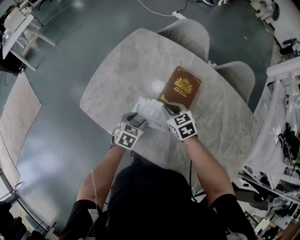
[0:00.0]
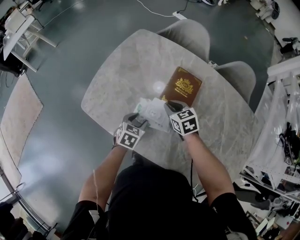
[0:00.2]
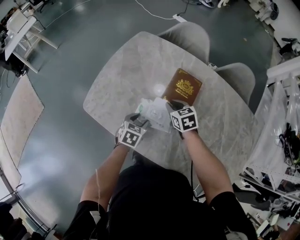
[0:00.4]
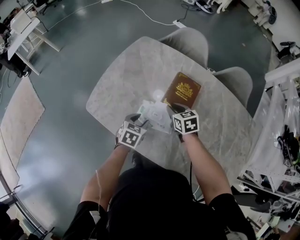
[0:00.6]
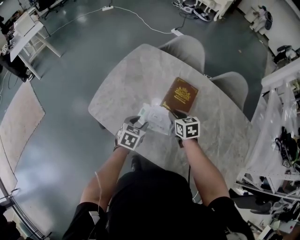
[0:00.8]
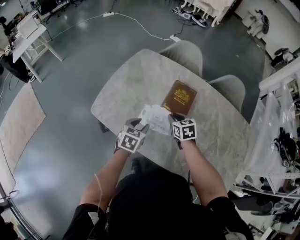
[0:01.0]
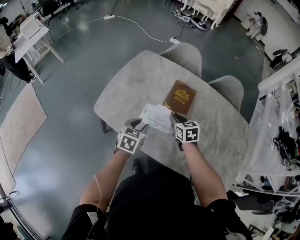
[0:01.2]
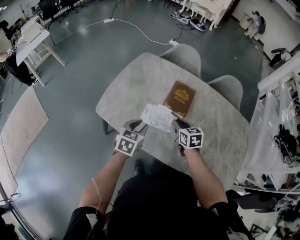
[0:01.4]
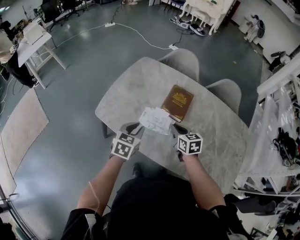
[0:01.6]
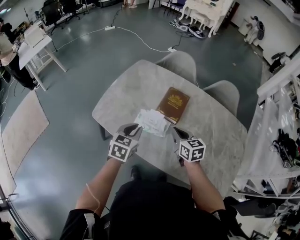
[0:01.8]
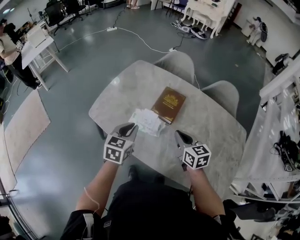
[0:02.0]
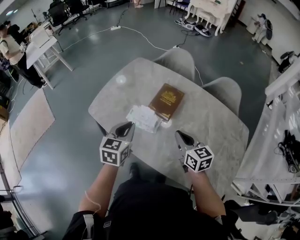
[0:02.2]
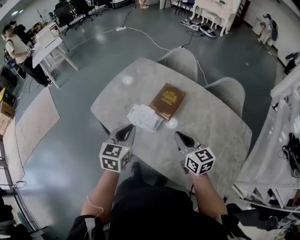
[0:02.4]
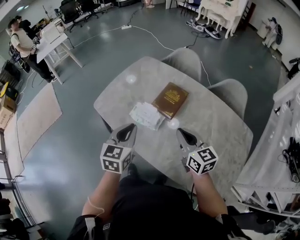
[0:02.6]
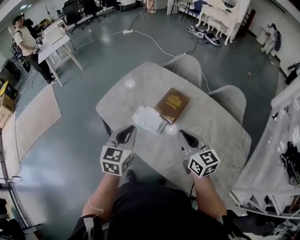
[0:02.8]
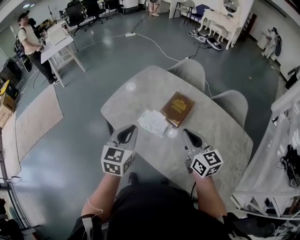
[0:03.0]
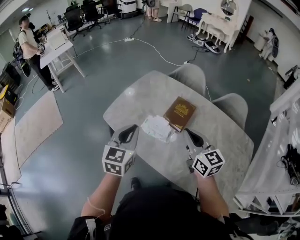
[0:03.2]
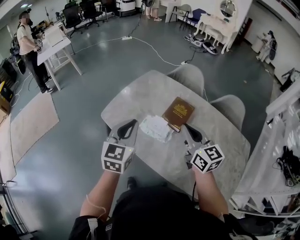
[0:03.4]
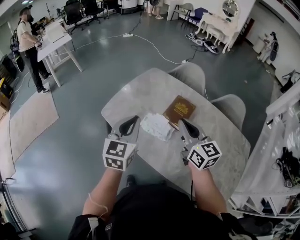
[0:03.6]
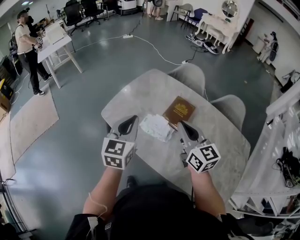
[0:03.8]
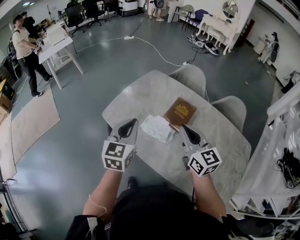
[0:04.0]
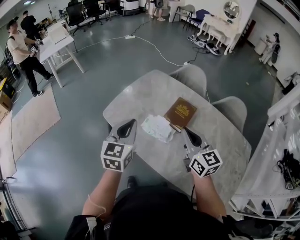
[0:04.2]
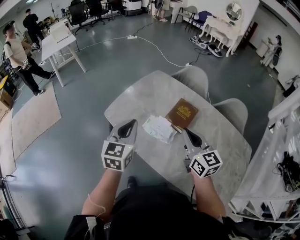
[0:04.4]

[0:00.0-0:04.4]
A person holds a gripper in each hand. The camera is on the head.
0.0 to 1.4 s: The right gripper shifts approximately 5 cm to the right, goes forward and returns, approximately 10 cm each way, and rotates roughly 20 degrees. The left gripper goes some 10 cm upward, and closes.
1.4 to 3.0 s: Both grippers travel together upward and backward, about 30 cm. The left gripper turns by approximately 30 degrees, and closes up. Meanwhile the right gripper swivels some 30 degrees.
3.0 to 4.4 s: The left gripper ends up approximately 5 cm from where it was.

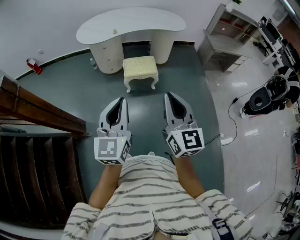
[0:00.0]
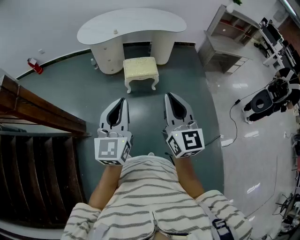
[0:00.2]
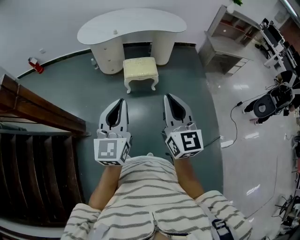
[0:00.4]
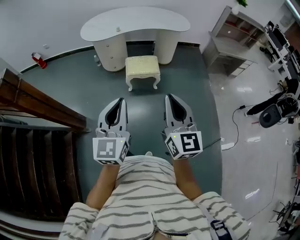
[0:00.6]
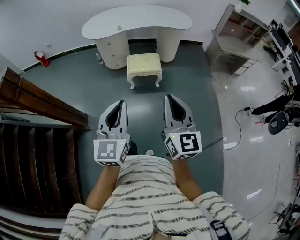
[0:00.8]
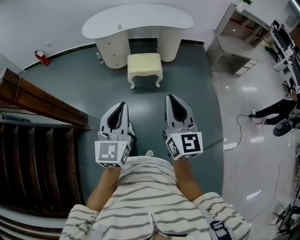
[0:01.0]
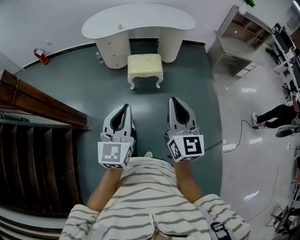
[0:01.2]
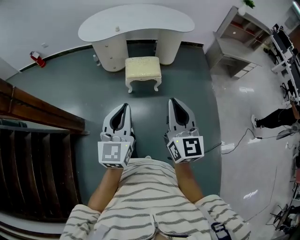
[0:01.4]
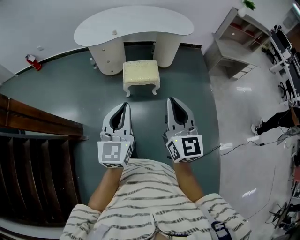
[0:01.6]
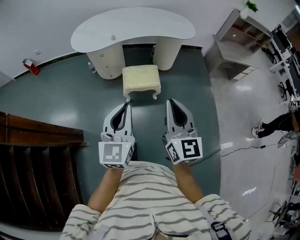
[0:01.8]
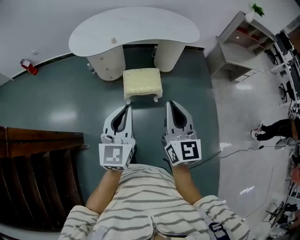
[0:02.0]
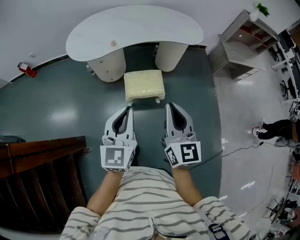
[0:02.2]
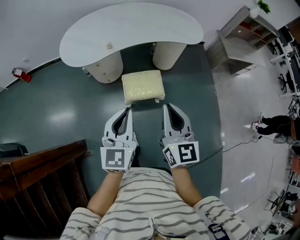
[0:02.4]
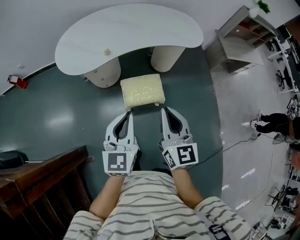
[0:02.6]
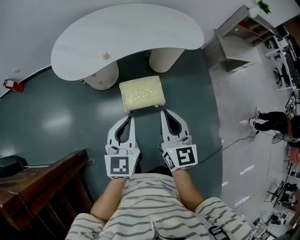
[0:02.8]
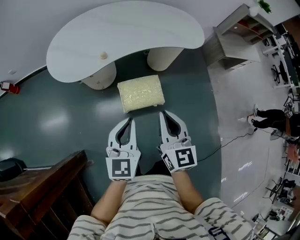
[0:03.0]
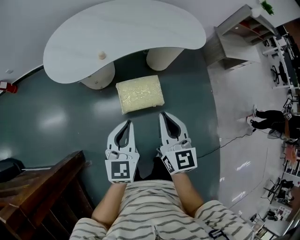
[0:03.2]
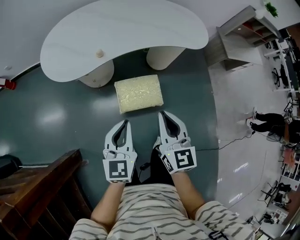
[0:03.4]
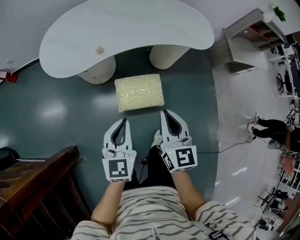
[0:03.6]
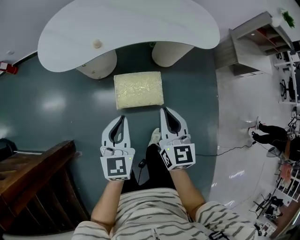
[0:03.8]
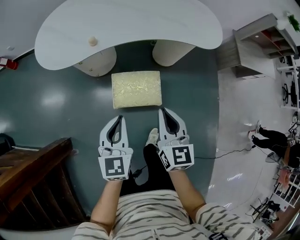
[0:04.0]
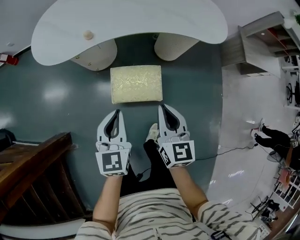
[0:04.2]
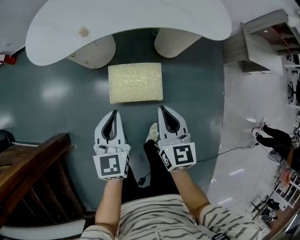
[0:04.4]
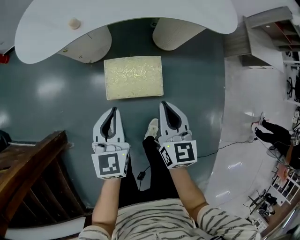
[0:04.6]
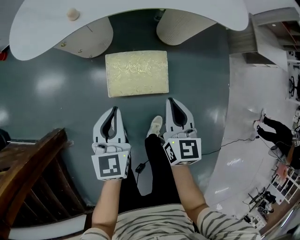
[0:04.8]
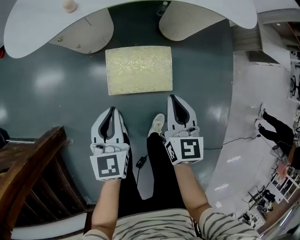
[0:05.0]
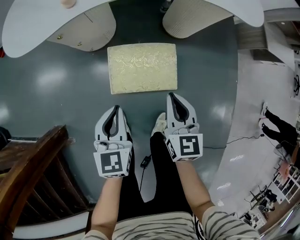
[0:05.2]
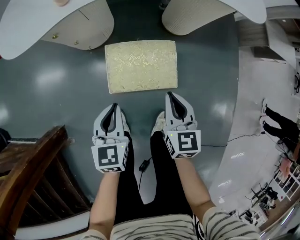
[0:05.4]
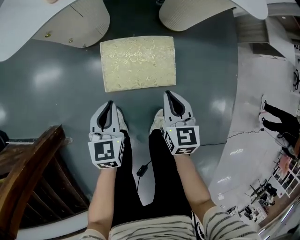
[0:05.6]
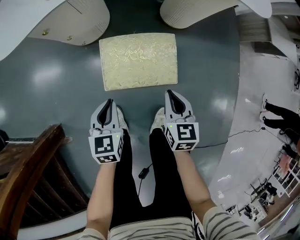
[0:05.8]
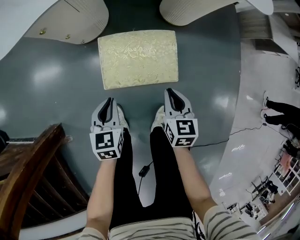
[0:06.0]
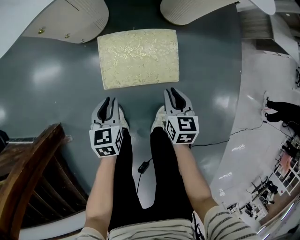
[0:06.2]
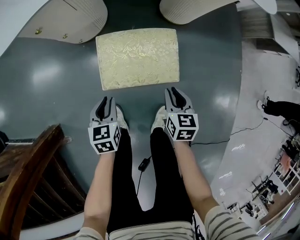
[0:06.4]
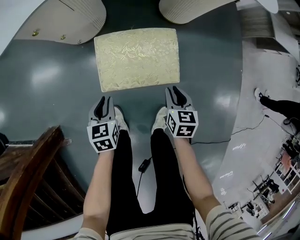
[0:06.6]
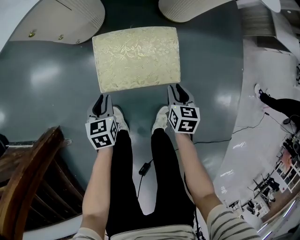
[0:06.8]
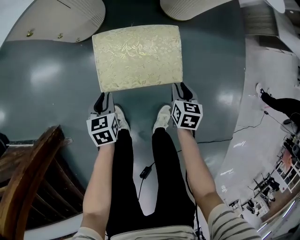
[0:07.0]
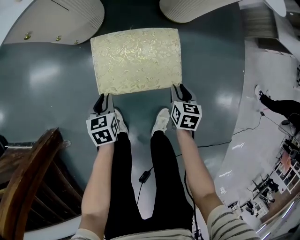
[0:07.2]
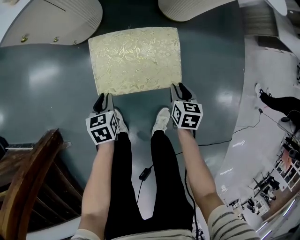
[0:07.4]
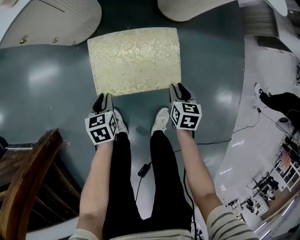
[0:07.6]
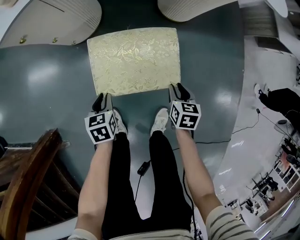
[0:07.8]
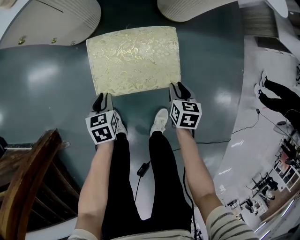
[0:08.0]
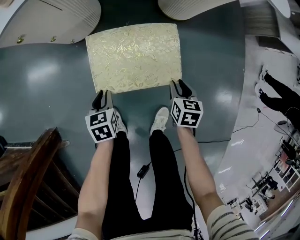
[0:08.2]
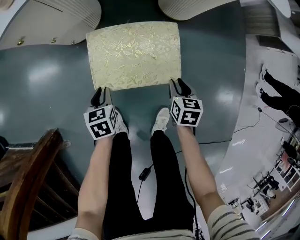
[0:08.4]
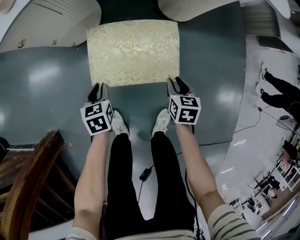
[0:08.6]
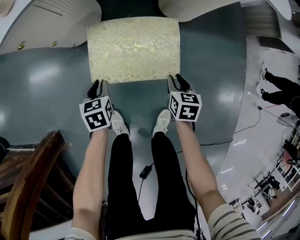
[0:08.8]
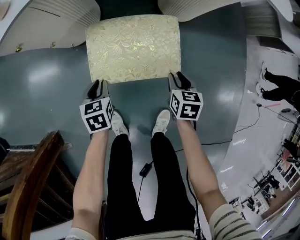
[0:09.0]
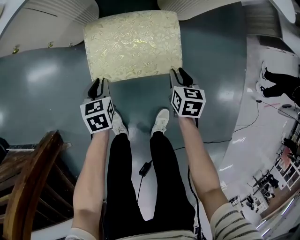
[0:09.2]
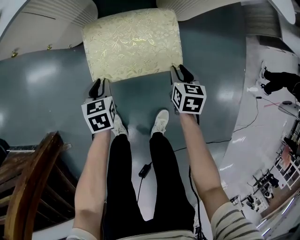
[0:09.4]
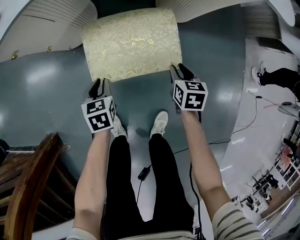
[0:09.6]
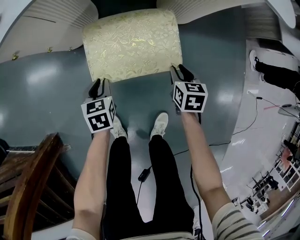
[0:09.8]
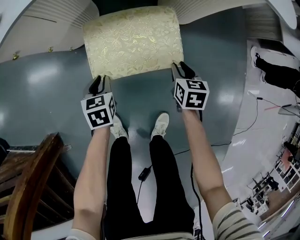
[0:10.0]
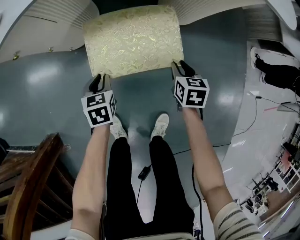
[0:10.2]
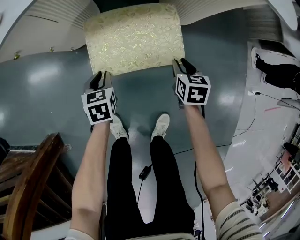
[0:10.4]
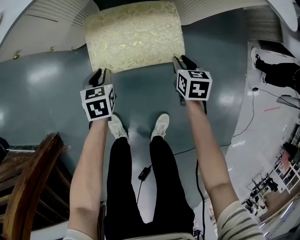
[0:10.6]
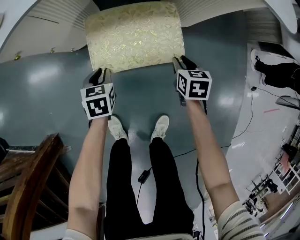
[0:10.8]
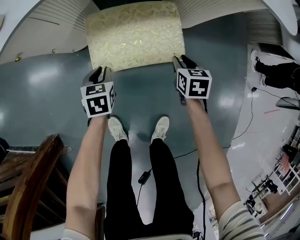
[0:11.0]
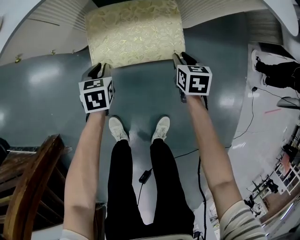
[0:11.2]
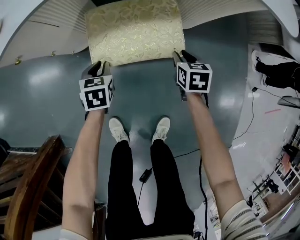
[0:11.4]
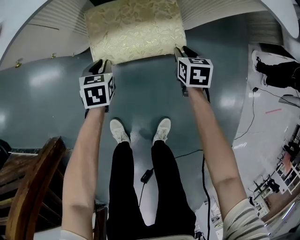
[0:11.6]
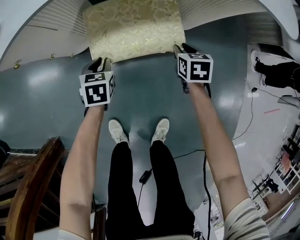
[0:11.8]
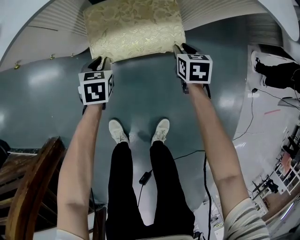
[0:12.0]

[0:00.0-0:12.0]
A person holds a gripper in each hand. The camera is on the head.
0.0 to 1.6 s: The right gripper travels forward by about 10 cm, while the left gripper is displaced forward and downward by some 10 cm.
1.6 to 3.0 s: The grippers both shift forward by some 35 cm.
3.0 to 4.4 s: The left gripper shifts approximately 20 cm downward, while the right gripper is displaced downward and to the right by about 25 cm.
4.4 to 6.0 s: The grippers both shift downward by some 30 cm. The left gripper turns by about 20 degrees.
6.0 to 7.6 s: The left gripper heads downward, covering roughly 15 cm. The right gripper heads downward and to the right, covering about 15 cm, and opens up.
7.6 to 9.0 s: Both grippers travel together forward, about 5 cm.
9.0 to 10.4 s: Both grippers move forward, approximately 10 cm.
10.4 to 12.0 s: Both grippers move forward, approximately 10 cm.

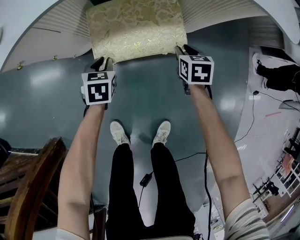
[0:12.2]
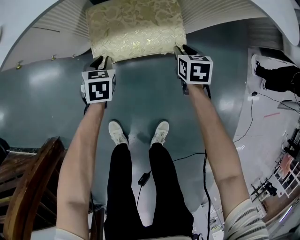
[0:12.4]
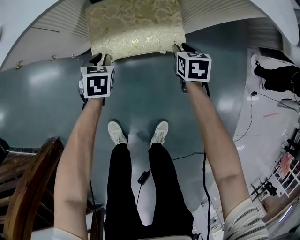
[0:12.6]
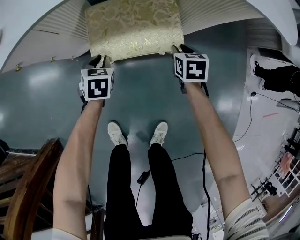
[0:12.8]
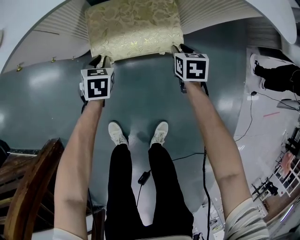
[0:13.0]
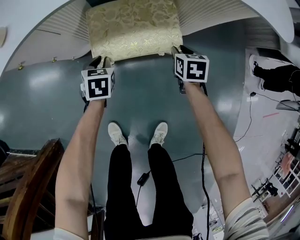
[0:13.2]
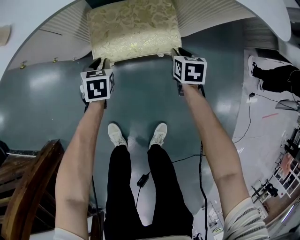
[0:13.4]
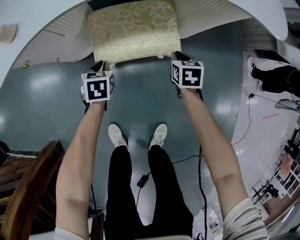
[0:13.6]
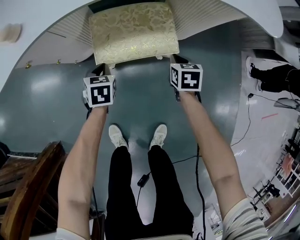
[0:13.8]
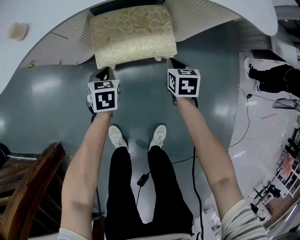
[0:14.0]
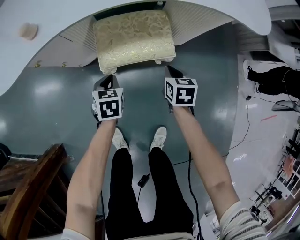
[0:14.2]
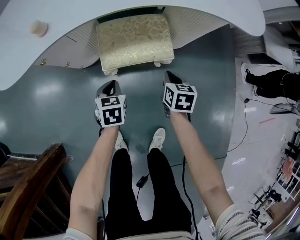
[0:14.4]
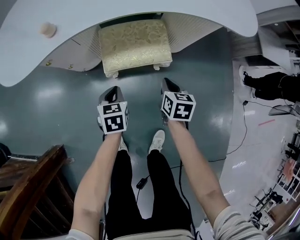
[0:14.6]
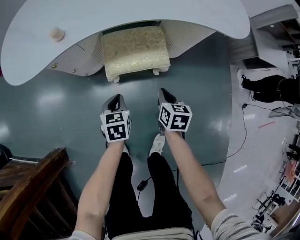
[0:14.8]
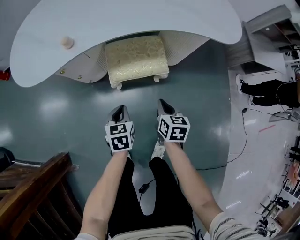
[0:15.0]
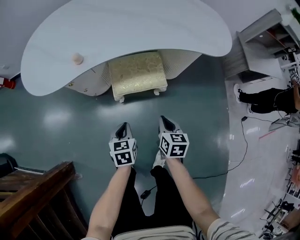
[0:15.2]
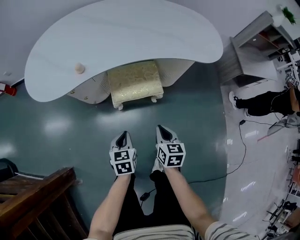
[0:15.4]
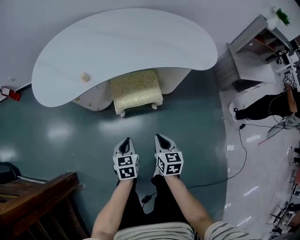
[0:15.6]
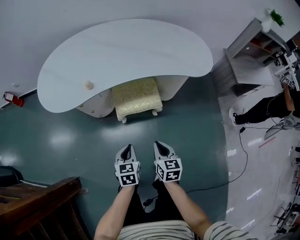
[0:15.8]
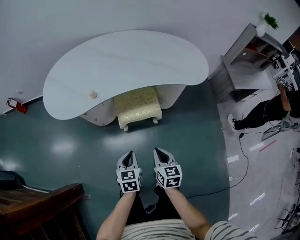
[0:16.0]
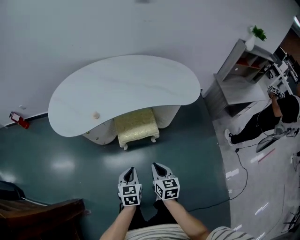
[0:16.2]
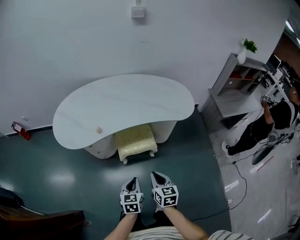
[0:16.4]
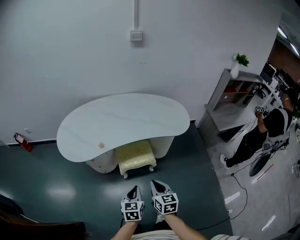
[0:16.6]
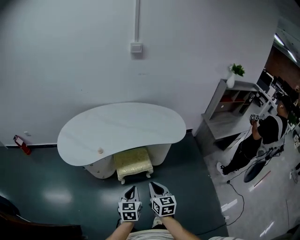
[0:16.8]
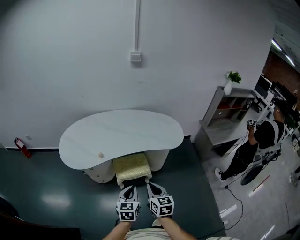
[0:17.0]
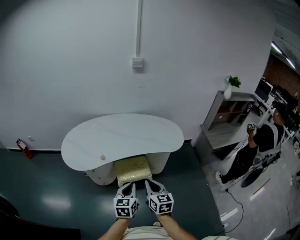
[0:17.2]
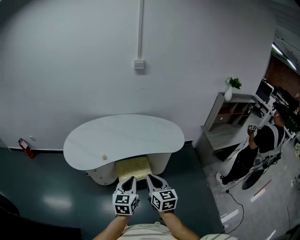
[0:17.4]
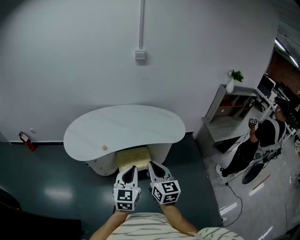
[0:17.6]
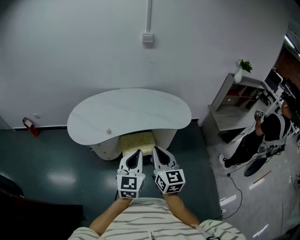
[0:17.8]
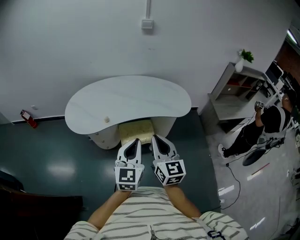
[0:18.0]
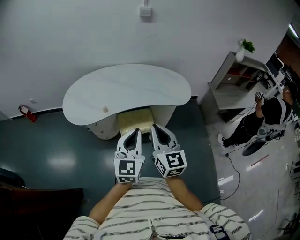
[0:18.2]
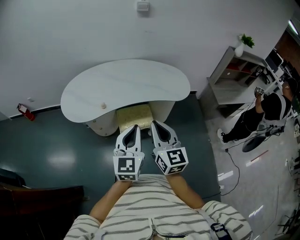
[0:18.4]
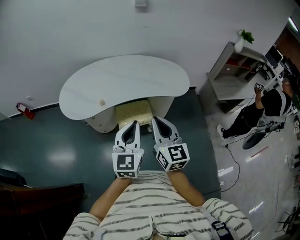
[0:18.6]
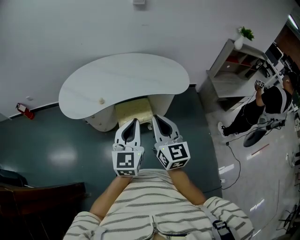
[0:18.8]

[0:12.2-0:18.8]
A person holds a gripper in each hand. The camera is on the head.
12.2 to 13.8 s: The right gripper closes its fingers.
13.8 to 15.4 s: Both grippers travel together upward and backward, about 30 cm.
15.4 to 17.2 s: Both grippers travel together upward, some 35 cm. The right gripper changes its angle by about 20 degrees, while the left gripper swivels approximately 30 degrees.
17.2 to 18.8 s: Both grippers move upward, approximately 10 cm. The left gripper rotates about 20 degrees.

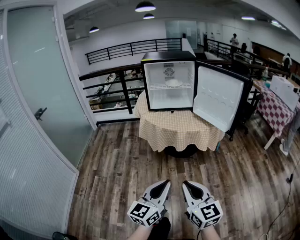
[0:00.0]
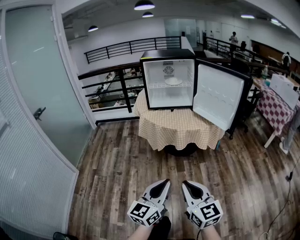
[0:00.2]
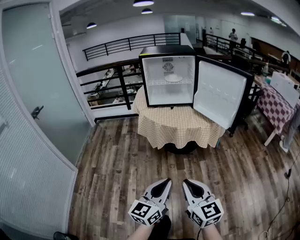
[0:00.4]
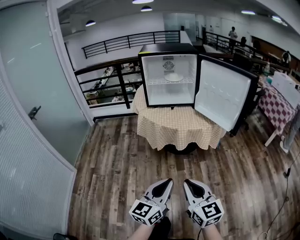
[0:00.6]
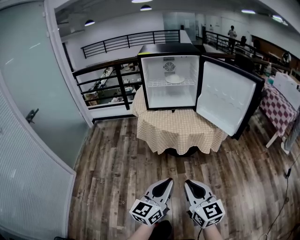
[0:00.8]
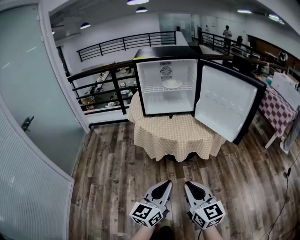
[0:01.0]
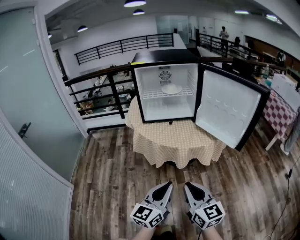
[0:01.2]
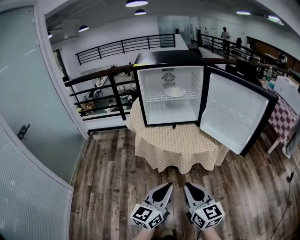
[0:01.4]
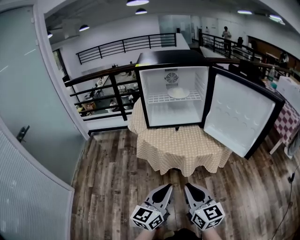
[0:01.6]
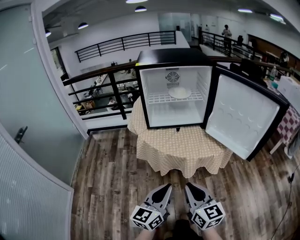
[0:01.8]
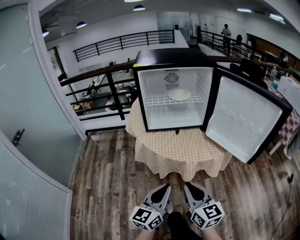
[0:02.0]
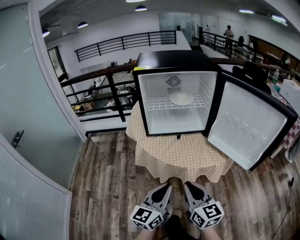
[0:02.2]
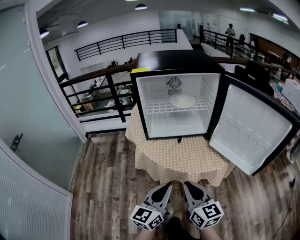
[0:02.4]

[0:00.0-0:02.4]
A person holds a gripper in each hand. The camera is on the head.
0.0 to 1.2 s: Both grippers travel together forward, some 20 cm.
1.2 to 2.4 s: The two grippers go approximately 20 cm forward.
